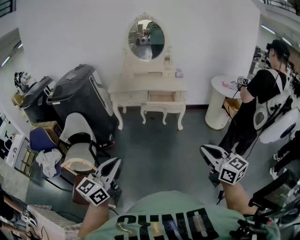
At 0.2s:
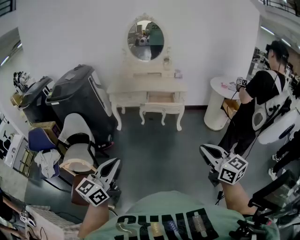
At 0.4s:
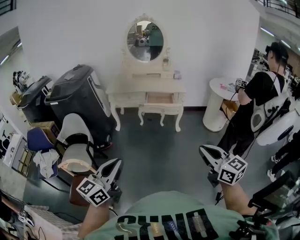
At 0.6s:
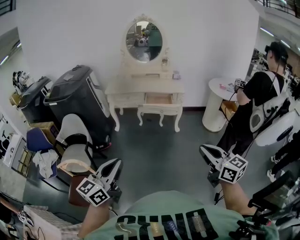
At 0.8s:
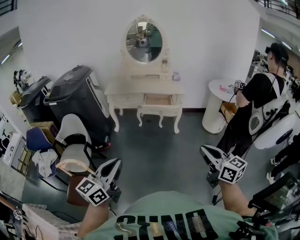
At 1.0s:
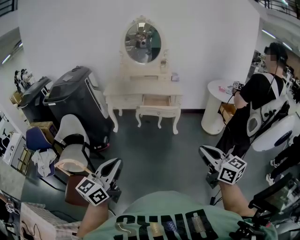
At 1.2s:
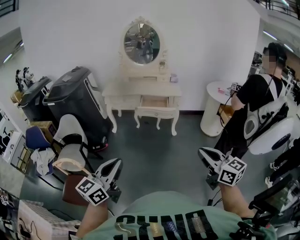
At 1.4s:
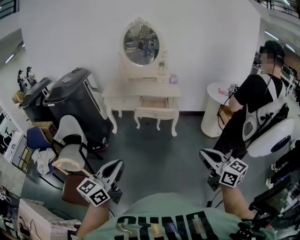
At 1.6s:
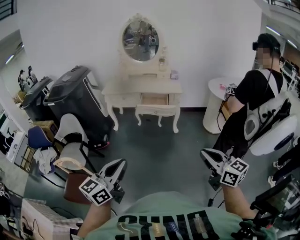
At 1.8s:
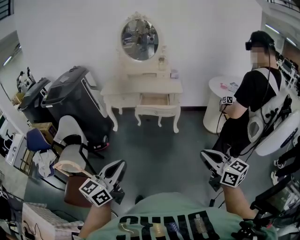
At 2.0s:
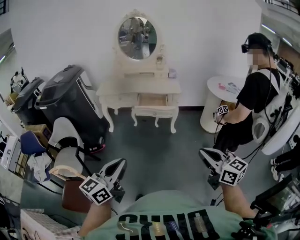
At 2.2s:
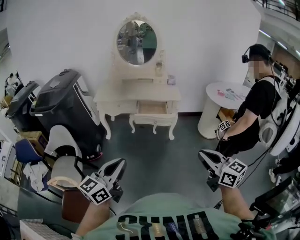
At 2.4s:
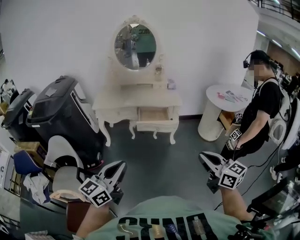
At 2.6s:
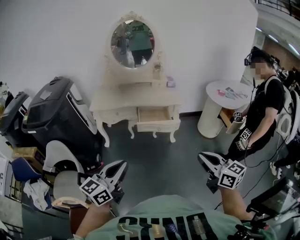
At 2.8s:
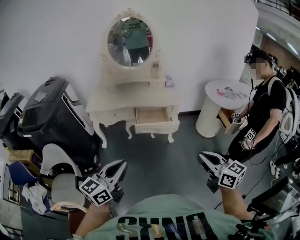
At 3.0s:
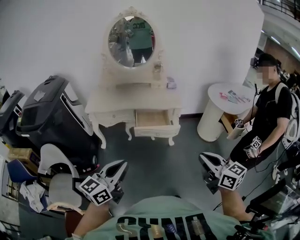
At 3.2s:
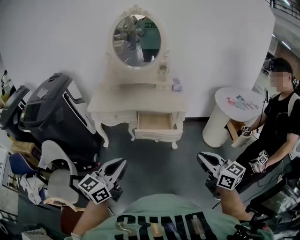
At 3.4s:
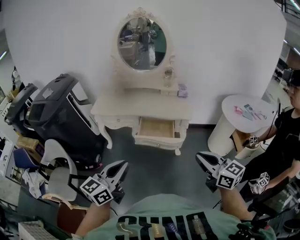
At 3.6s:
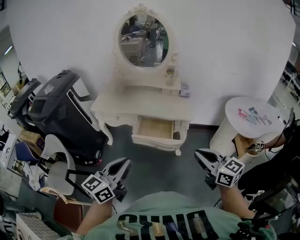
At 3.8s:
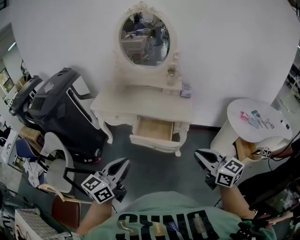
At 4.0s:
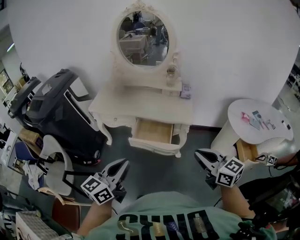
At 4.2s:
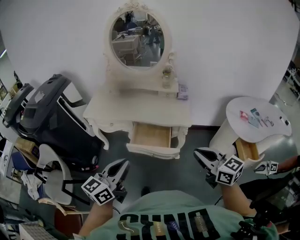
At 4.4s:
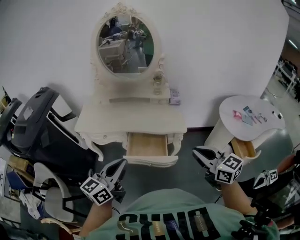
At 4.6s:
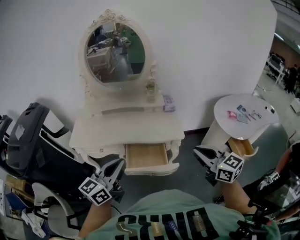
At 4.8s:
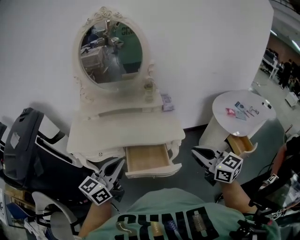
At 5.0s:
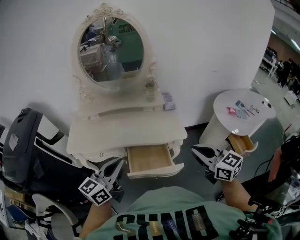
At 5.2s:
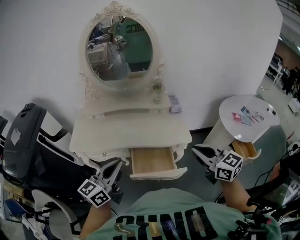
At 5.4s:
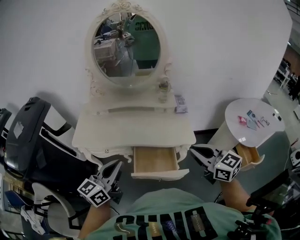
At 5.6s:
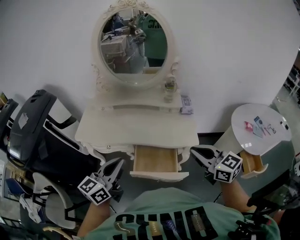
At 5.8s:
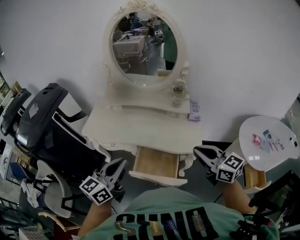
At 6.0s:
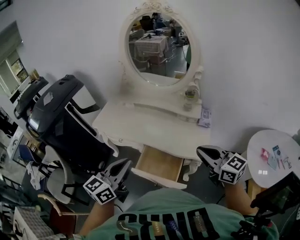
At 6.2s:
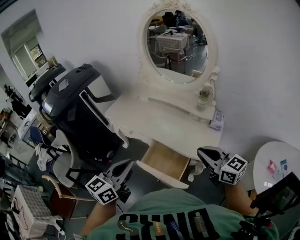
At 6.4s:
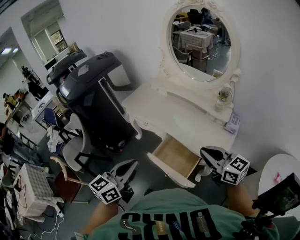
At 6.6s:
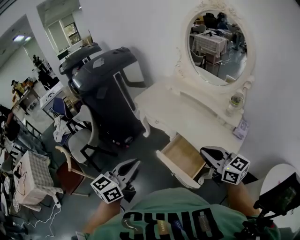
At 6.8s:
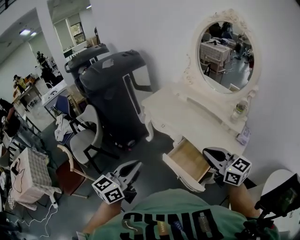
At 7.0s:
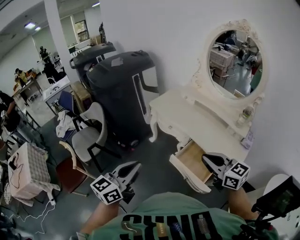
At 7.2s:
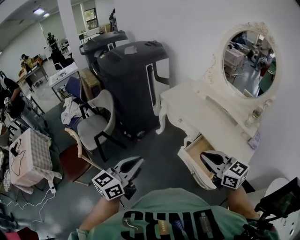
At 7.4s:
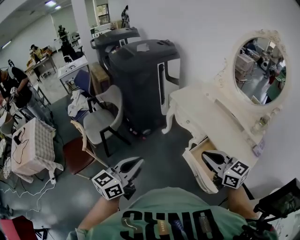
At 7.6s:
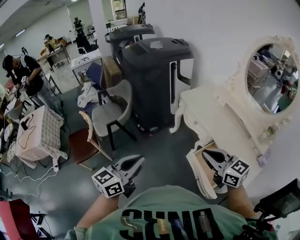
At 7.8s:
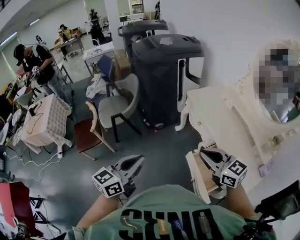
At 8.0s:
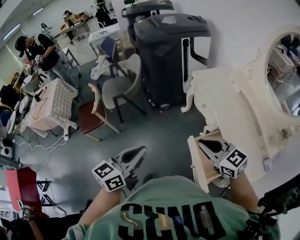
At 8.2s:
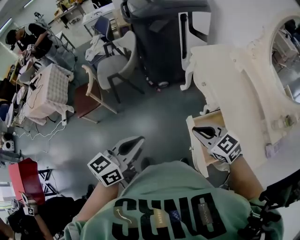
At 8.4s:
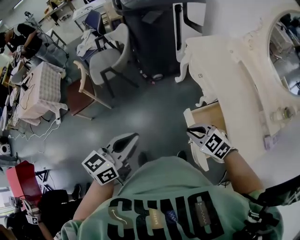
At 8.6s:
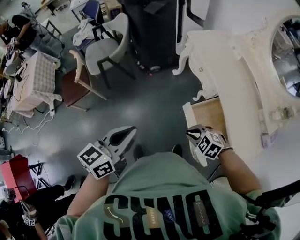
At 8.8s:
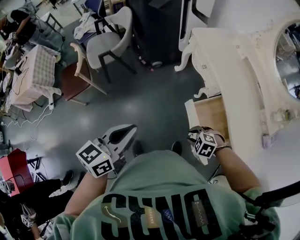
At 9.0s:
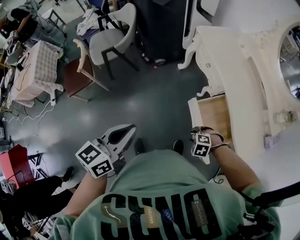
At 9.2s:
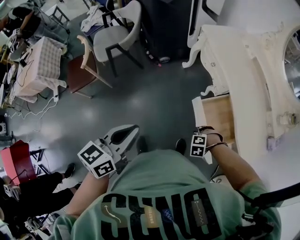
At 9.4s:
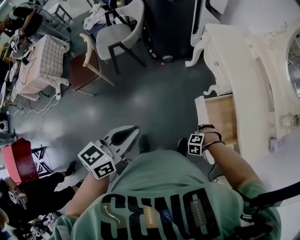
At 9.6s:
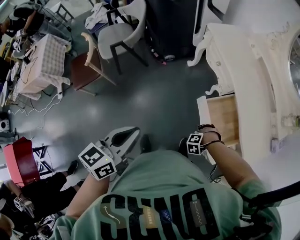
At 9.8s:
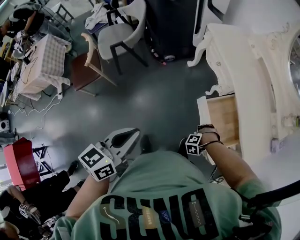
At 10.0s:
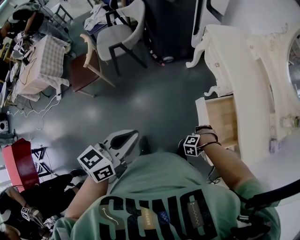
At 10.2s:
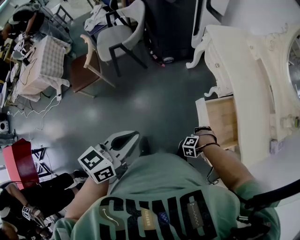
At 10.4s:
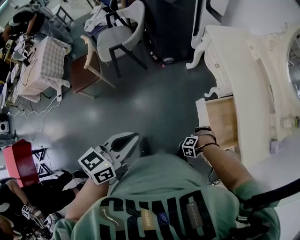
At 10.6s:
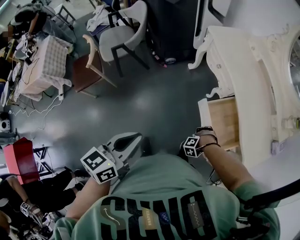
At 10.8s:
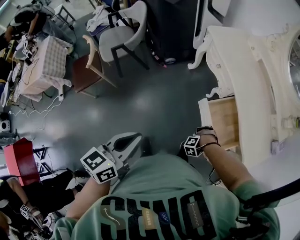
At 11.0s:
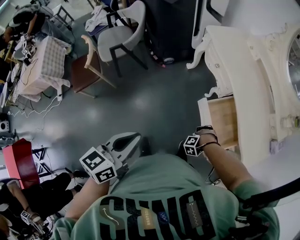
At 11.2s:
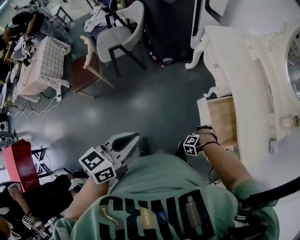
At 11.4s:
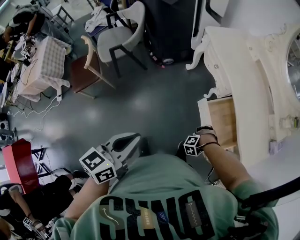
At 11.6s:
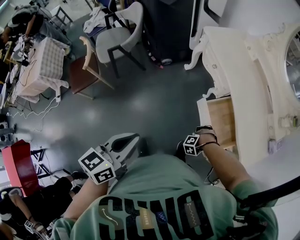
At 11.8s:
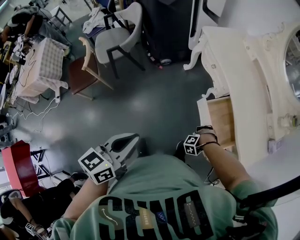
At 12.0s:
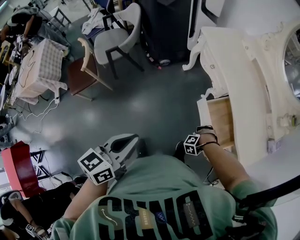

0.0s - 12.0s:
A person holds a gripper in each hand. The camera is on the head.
0.0s - 1.6s: The left gripper moves roughly 15 cm.
1.6s - 3.0s: The left gripper shifts by roughly 40 cm.
3.0s - 4.4s: The left gripper shifts by some 30 cm.
4.4s - 6.0s: The left gripper ends up some 15 cm from where it was.
6.0s - 7.6s: The left gripper moves about 30 cm, and swivels about 40 degrees.
7.6s - 9.0s: The left gripper heads downward, covering some 10 cm.

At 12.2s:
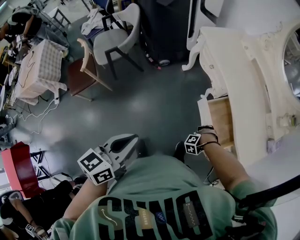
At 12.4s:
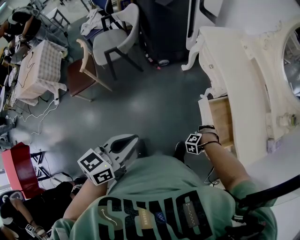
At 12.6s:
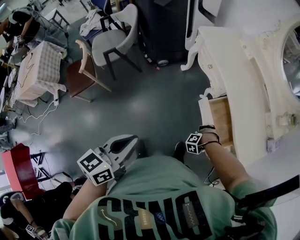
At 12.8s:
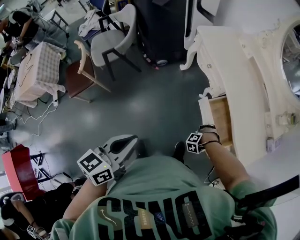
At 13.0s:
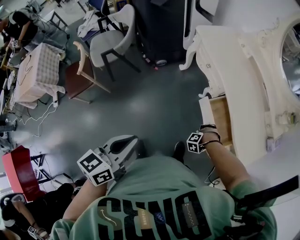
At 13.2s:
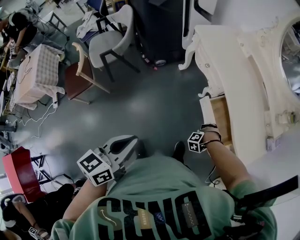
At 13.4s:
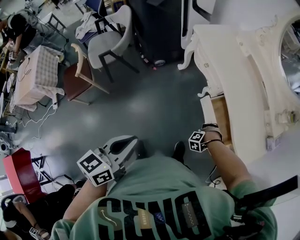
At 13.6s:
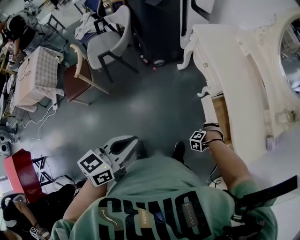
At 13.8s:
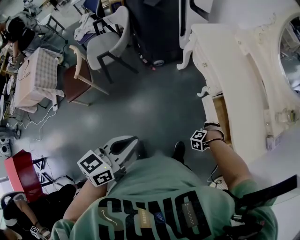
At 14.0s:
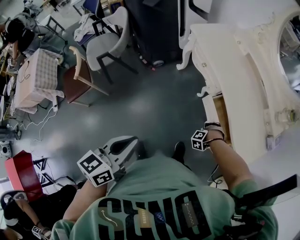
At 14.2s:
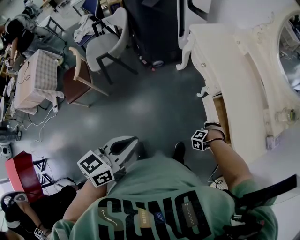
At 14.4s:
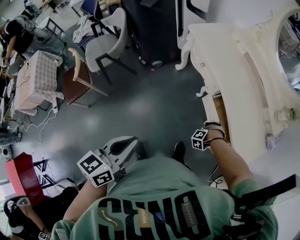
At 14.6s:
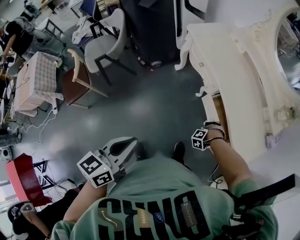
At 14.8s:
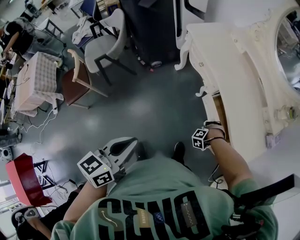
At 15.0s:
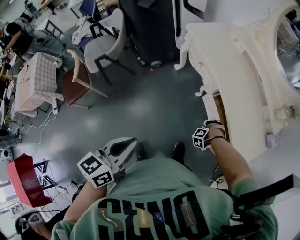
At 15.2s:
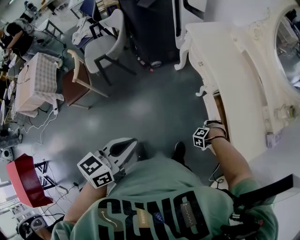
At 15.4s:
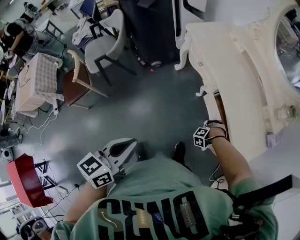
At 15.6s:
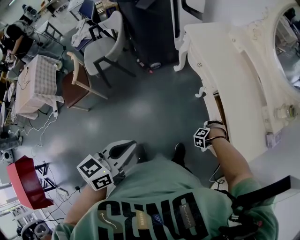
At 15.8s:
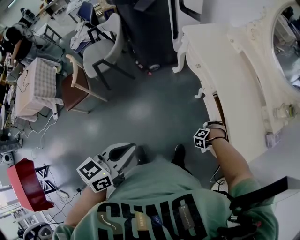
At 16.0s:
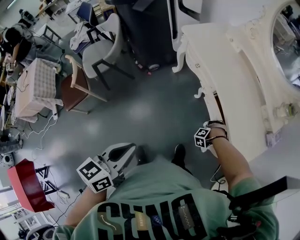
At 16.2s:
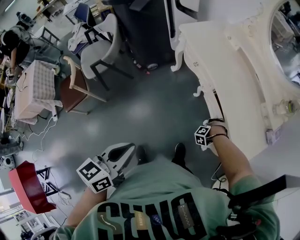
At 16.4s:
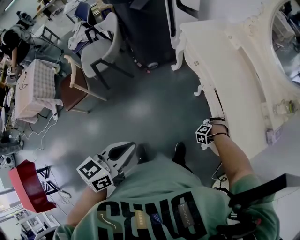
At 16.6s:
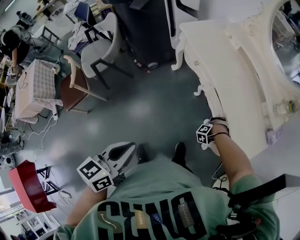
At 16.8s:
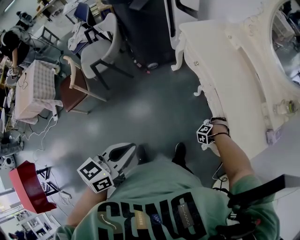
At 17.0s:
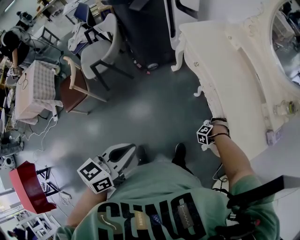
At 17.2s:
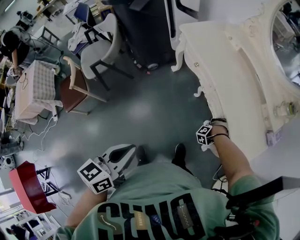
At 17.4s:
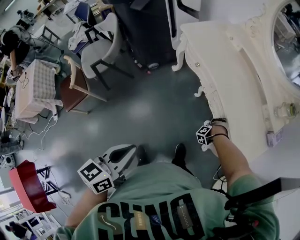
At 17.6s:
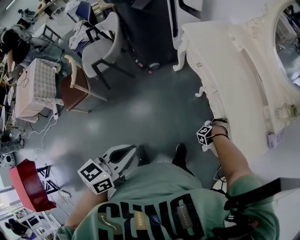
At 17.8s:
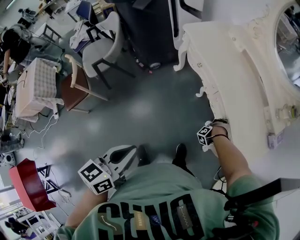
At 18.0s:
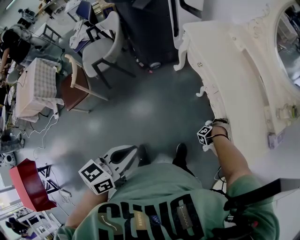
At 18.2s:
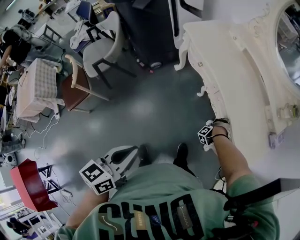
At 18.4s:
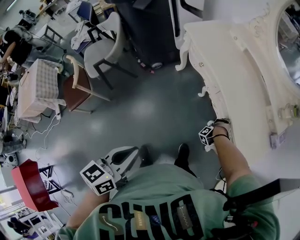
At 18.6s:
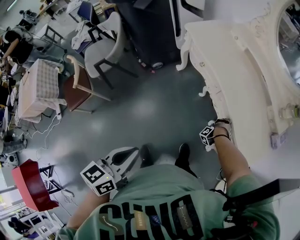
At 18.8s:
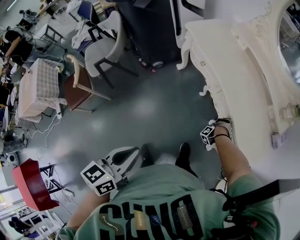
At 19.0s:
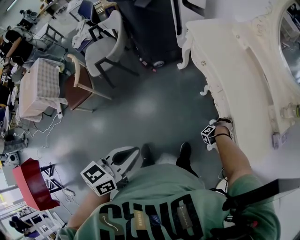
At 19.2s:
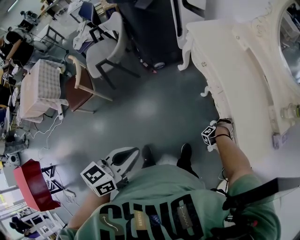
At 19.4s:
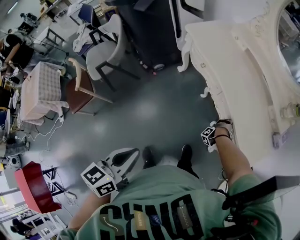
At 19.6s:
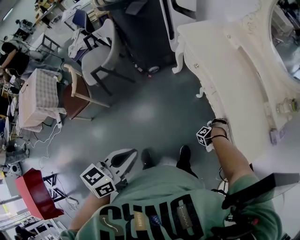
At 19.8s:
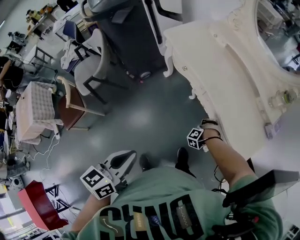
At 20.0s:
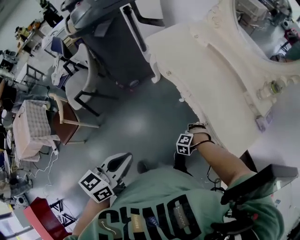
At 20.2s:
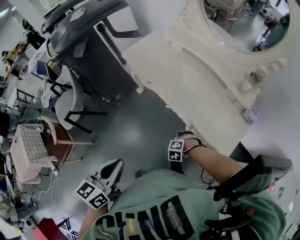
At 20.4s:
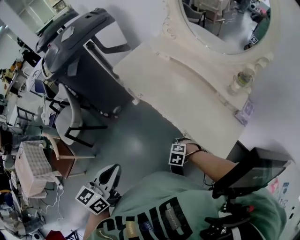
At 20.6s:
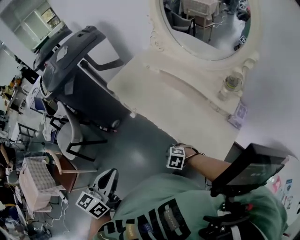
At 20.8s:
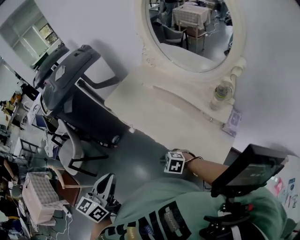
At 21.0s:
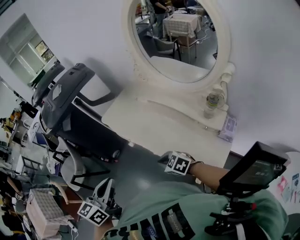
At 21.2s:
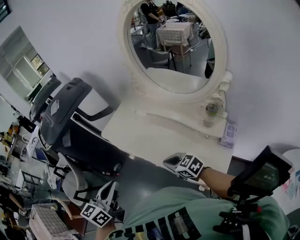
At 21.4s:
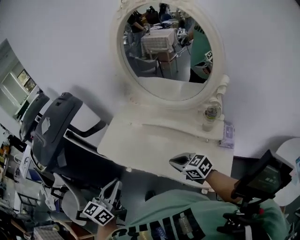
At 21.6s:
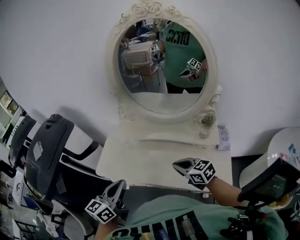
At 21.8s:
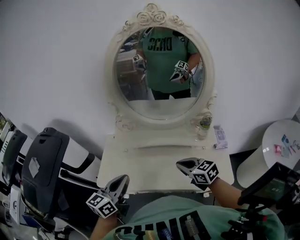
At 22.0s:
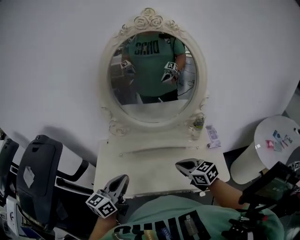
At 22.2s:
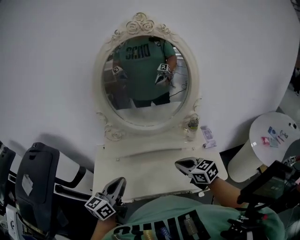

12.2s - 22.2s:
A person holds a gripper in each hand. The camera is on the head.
19.4s - 20.8s: The left gripper ends up about 25 cm from where it was.
20.8s - 22.2s: The left gripper shifts by about 35 cm, and swivels about 50 degrees.

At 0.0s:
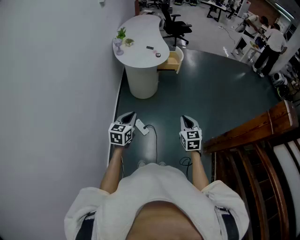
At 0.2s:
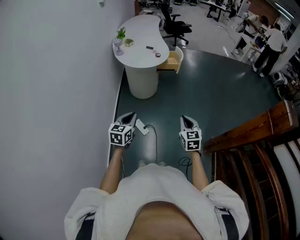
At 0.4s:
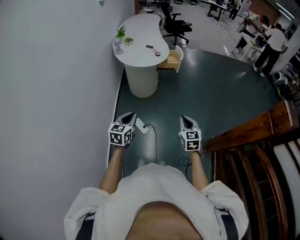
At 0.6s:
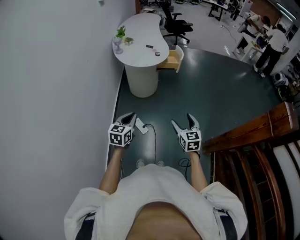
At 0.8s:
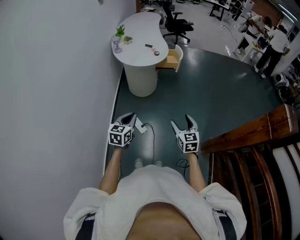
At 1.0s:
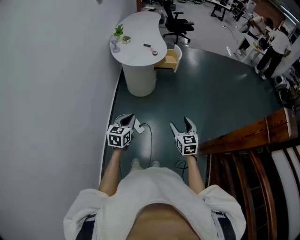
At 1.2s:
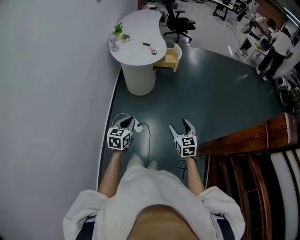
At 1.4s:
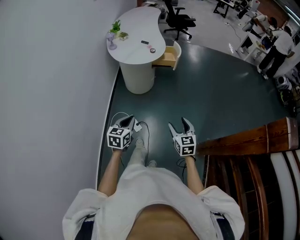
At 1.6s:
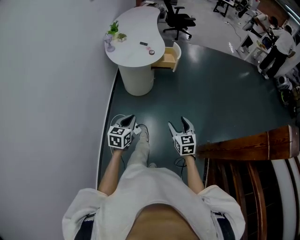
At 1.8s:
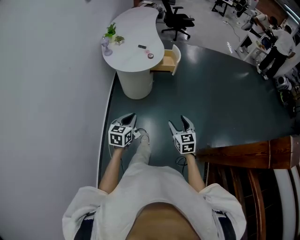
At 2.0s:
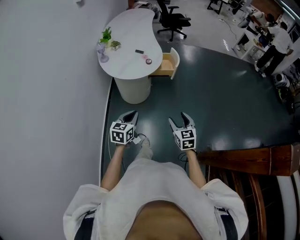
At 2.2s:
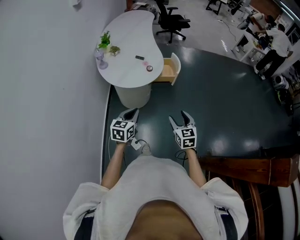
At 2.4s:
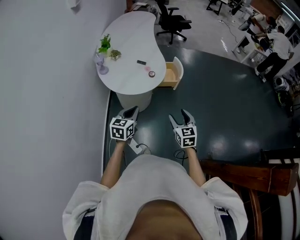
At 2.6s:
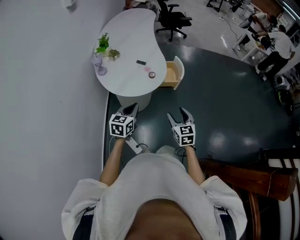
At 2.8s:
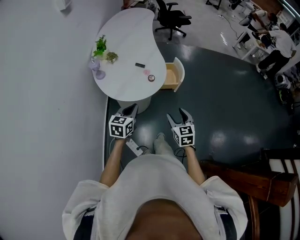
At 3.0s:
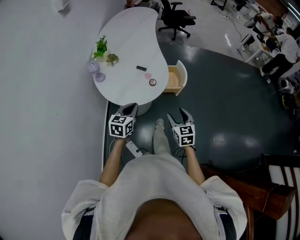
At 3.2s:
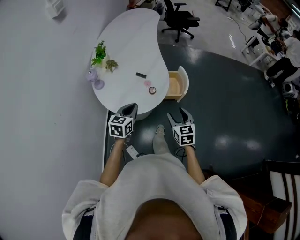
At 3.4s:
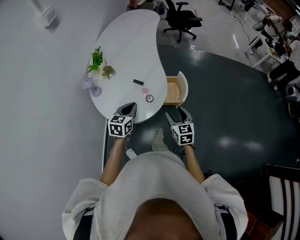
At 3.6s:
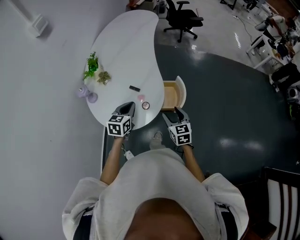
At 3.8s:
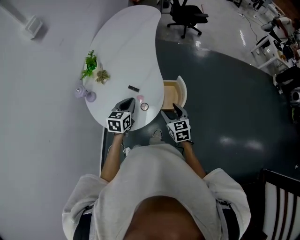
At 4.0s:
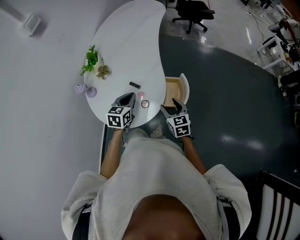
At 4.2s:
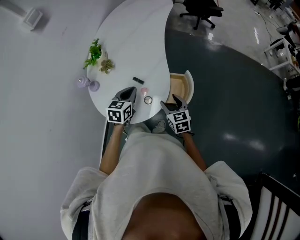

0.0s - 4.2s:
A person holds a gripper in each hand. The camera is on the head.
0.0s - 1.4s: The left gripper heads to the right, covering roughly 10 cm, while the right gripper travels to the right by roughly 5 cm, and opens.
1.4s - 2.8s: The pair of grippers is taken forward, about 40 cm.
2.8s - 4.2s: Both grippers travel together forward, approximately 30 cm.
